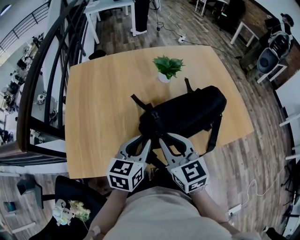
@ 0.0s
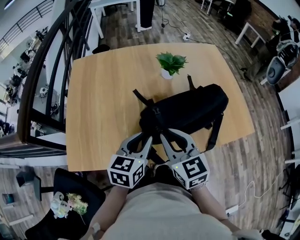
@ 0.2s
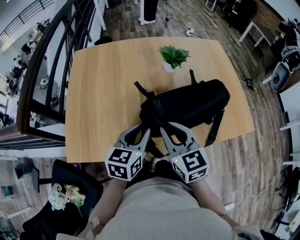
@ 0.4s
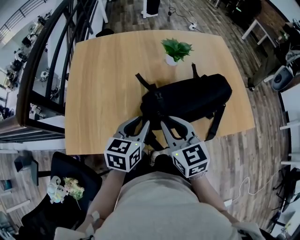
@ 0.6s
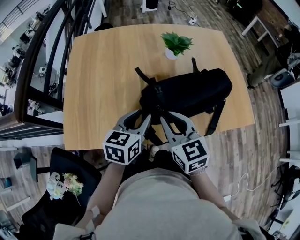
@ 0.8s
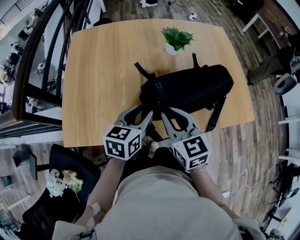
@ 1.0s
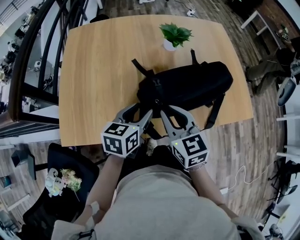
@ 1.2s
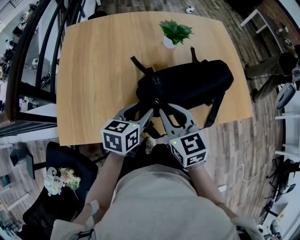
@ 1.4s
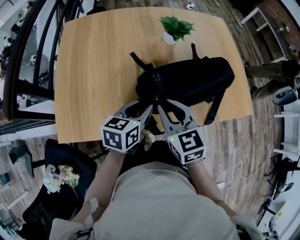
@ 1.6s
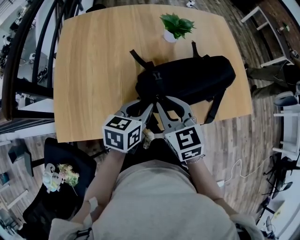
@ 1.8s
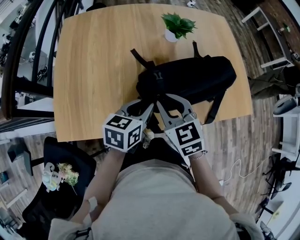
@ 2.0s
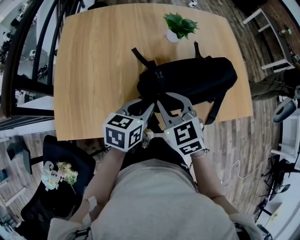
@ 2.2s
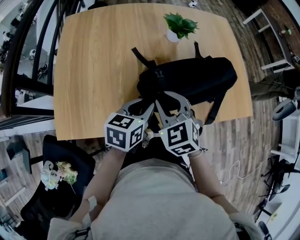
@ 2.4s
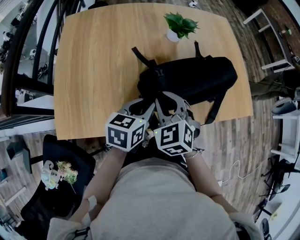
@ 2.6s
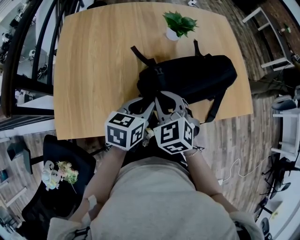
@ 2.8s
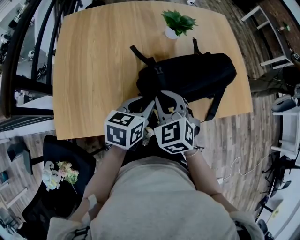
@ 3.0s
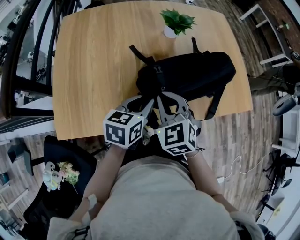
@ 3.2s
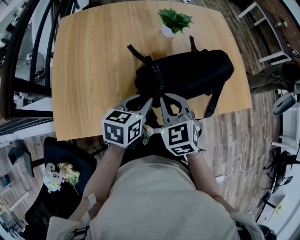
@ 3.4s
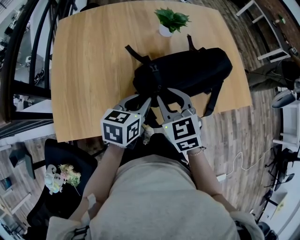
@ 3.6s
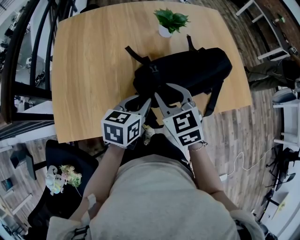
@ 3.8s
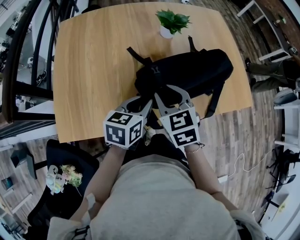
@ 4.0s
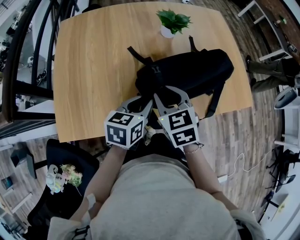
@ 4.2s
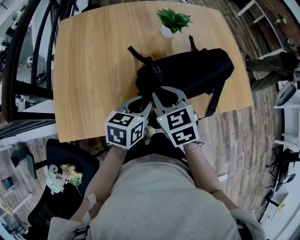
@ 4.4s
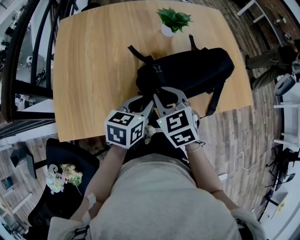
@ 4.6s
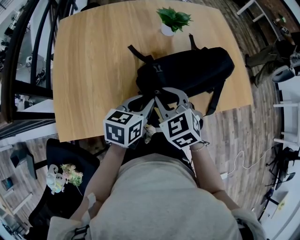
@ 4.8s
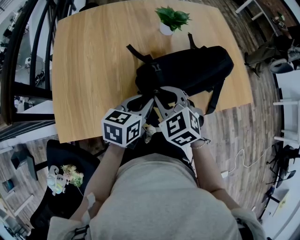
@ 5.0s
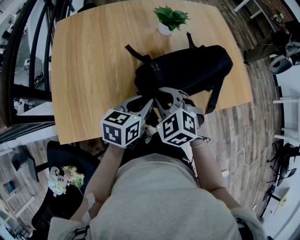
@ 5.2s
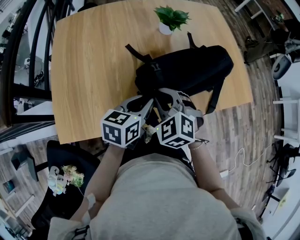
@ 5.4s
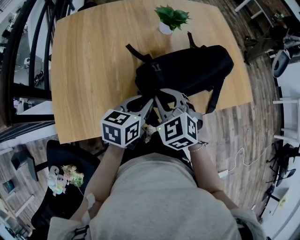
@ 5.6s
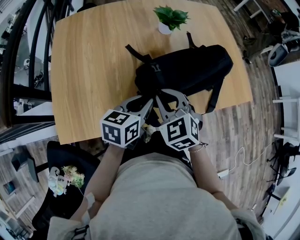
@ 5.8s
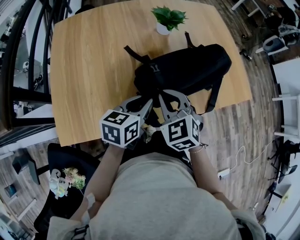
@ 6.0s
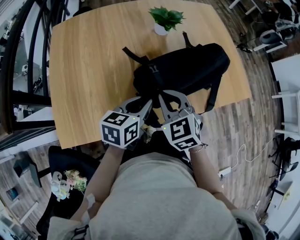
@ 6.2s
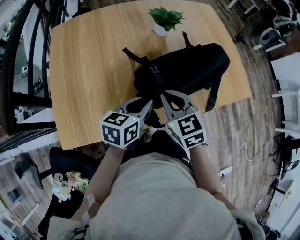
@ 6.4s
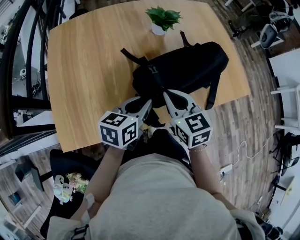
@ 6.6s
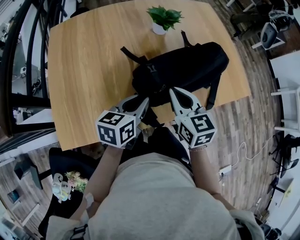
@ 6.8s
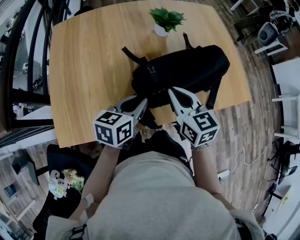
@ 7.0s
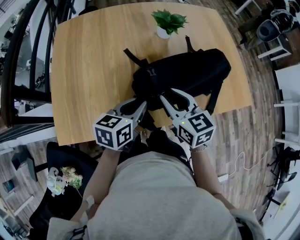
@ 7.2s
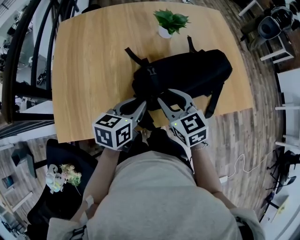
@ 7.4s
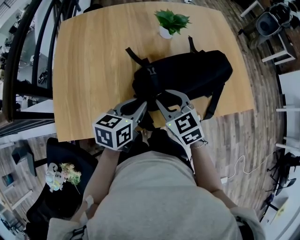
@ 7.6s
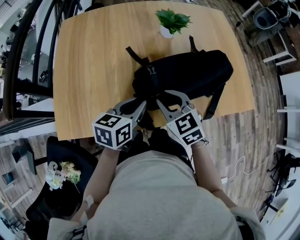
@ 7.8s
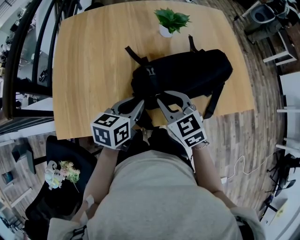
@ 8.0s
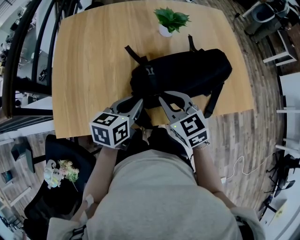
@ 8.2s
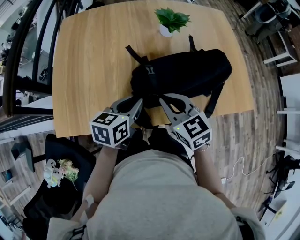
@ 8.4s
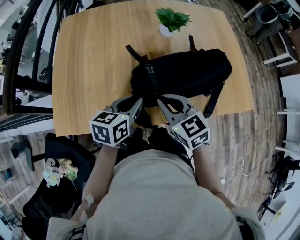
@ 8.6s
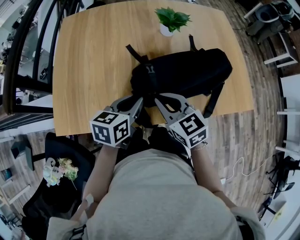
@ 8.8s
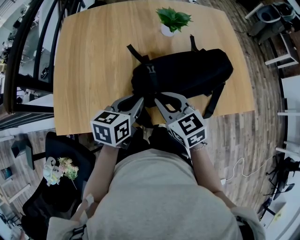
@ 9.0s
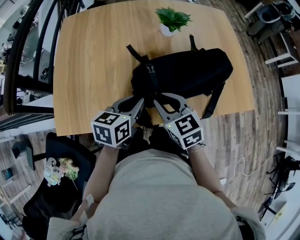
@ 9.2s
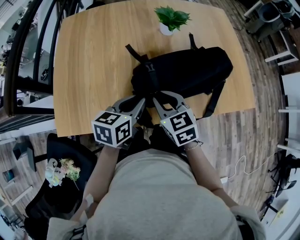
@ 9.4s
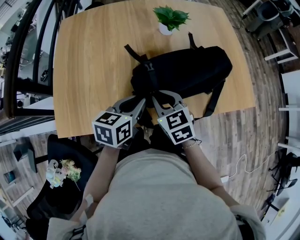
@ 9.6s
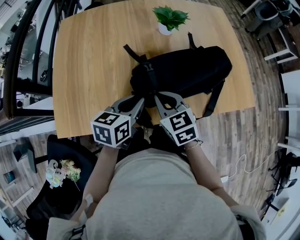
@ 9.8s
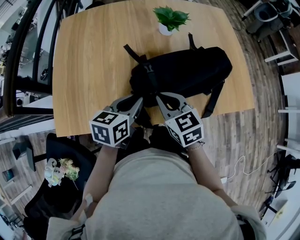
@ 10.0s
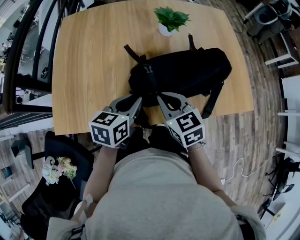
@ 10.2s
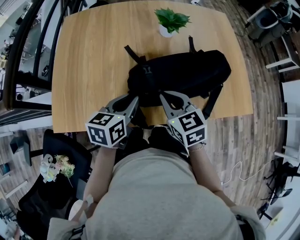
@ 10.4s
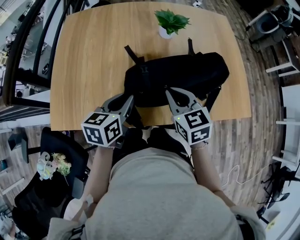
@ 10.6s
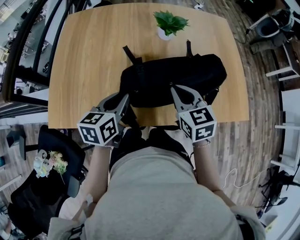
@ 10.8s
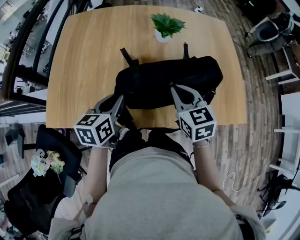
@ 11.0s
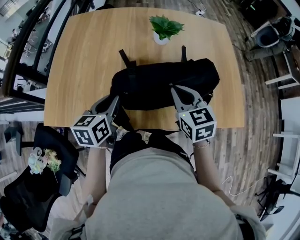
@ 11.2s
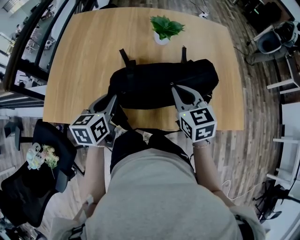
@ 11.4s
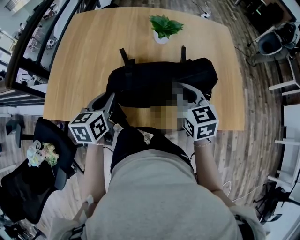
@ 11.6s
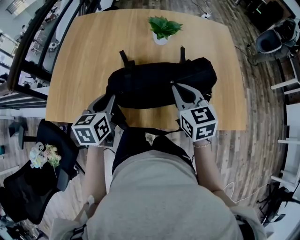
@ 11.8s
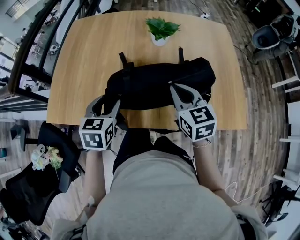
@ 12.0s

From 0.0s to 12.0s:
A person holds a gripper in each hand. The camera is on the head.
From 0.0s to 1.6s: The left gripper moves some 5 cm.
From 1.6s to 3.0s: The right gripper changes its angle by approximately 30 degrees.
From 6.0s to 7.6s: The right gripper opens up.
From 7.6s to 10.4s: The grippers move only a little.
From 10.4s to 12.0s: The left gripper swivels approximately 30 degrees, and opens its fingers. Meanwhile the right gripper shifts approximately 10 cm to the right.

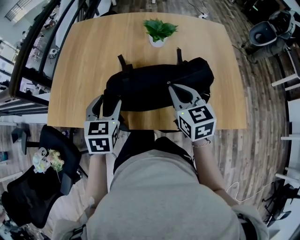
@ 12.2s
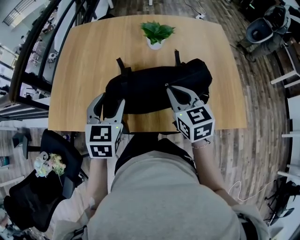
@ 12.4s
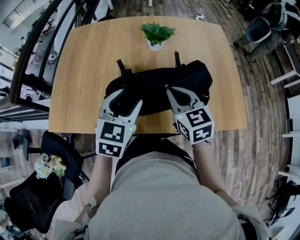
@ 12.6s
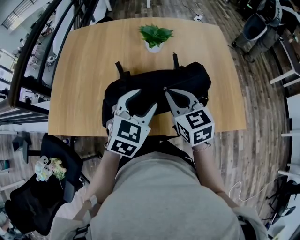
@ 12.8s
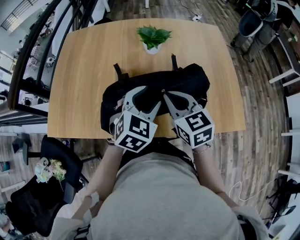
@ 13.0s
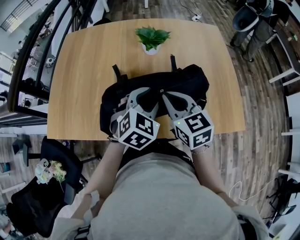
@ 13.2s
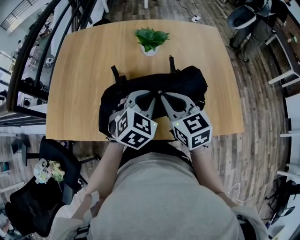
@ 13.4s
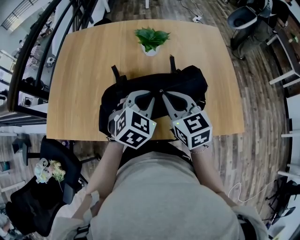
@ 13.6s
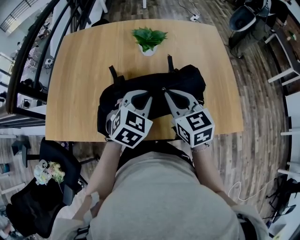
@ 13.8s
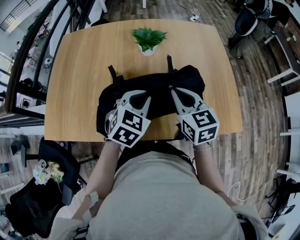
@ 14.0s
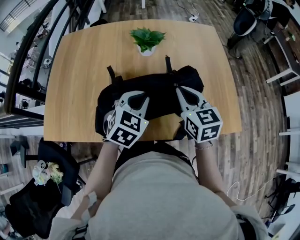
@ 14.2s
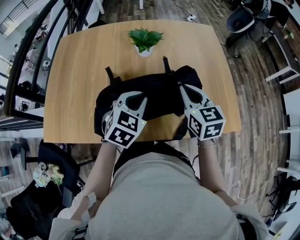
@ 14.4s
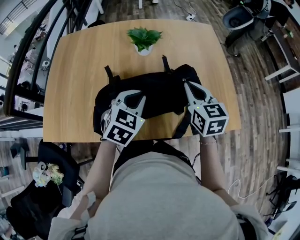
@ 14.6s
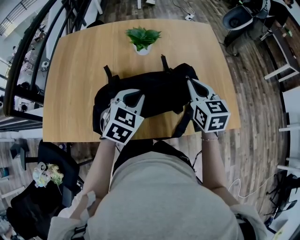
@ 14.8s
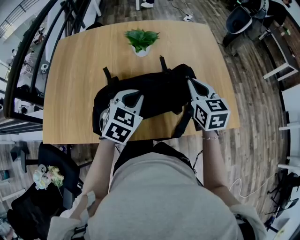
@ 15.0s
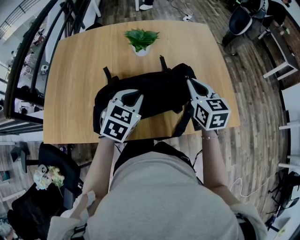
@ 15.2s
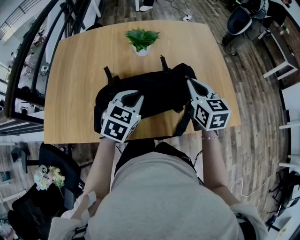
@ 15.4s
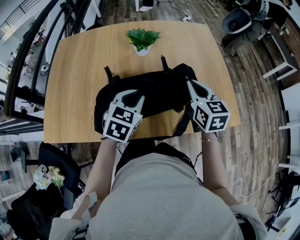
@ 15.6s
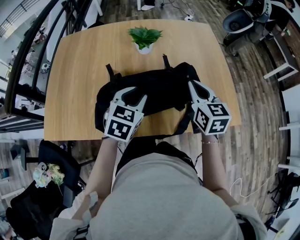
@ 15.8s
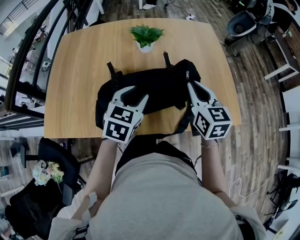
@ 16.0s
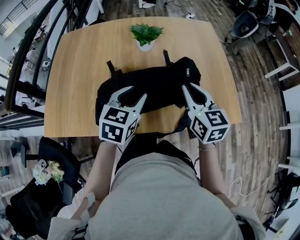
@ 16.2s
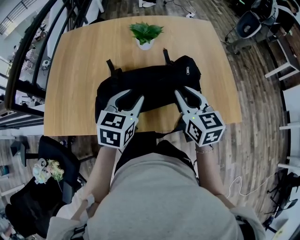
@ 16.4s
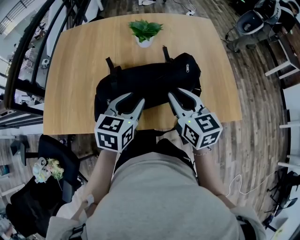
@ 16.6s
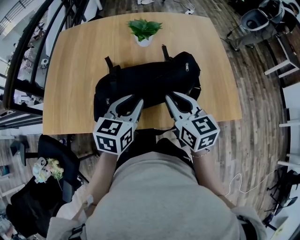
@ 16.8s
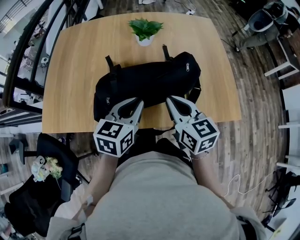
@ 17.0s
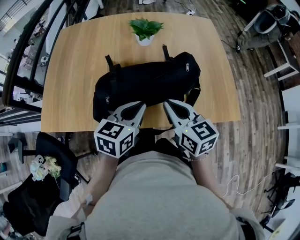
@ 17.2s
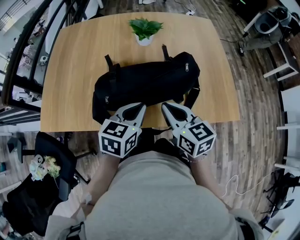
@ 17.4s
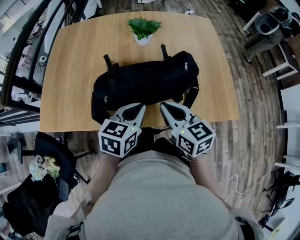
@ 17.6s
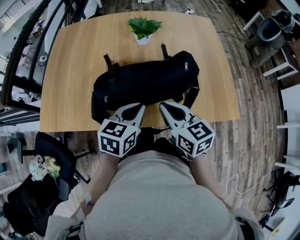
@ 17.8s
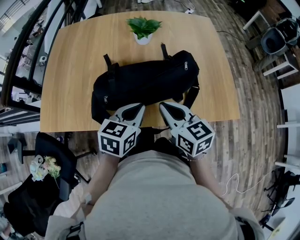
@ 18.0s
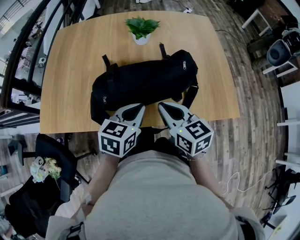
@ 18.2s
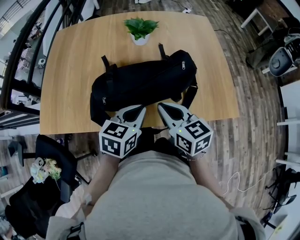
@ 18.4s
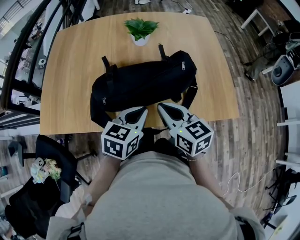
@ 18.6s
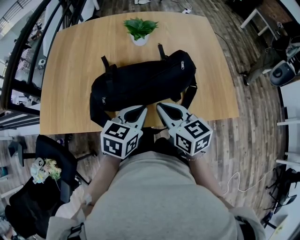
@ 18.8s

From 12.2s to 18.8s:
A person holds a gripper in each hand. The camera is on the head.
From 12.2s to 13.8s: The left gripper is displaced to the right by approximately 15 cm, turns by about 30 degrees, and closes up.
From 13.8s to 15.4s: The right gripper shifts about 10 cm to the right.
From 15.4s to 17.2s: The right gripper shifts approximately 15 cm backward and to the left. Meanwhile the left gripper goes about 10 cm backward, changes its angle by approximately 20 degrees, and opens and closes again.
From 17.2s to 18.8s: The grippers move only a little.

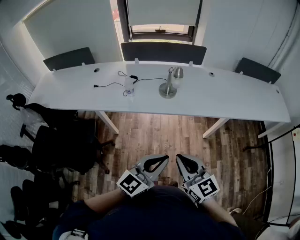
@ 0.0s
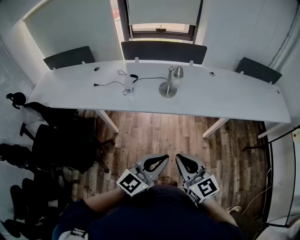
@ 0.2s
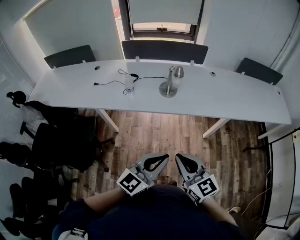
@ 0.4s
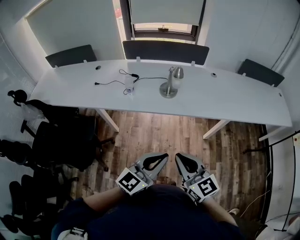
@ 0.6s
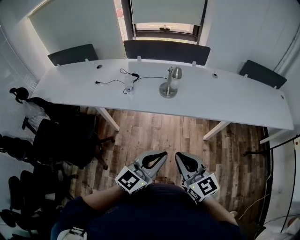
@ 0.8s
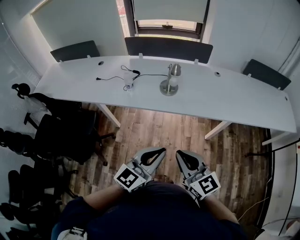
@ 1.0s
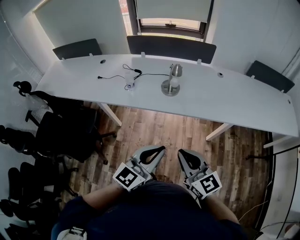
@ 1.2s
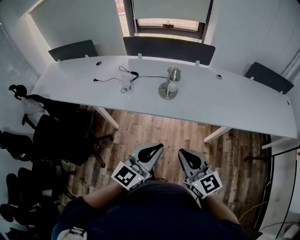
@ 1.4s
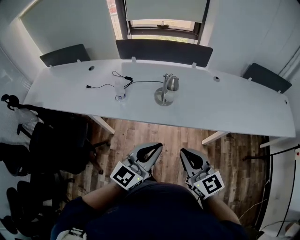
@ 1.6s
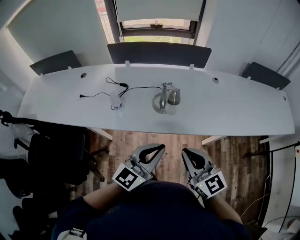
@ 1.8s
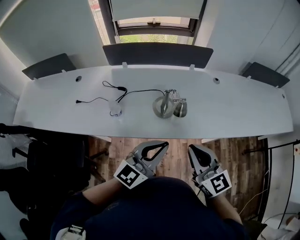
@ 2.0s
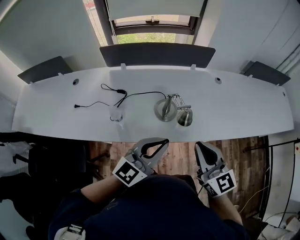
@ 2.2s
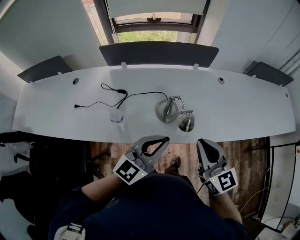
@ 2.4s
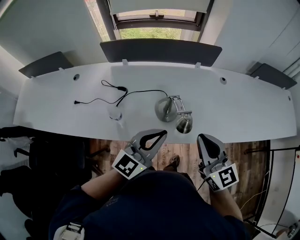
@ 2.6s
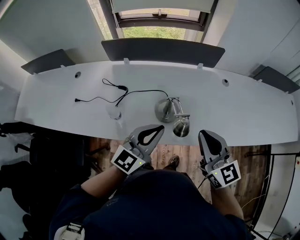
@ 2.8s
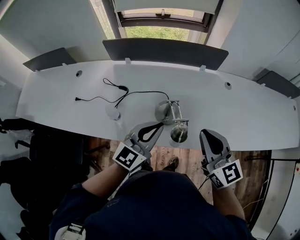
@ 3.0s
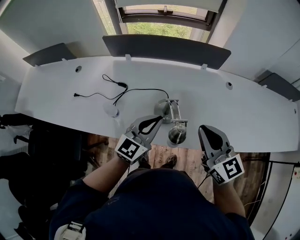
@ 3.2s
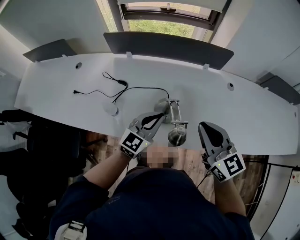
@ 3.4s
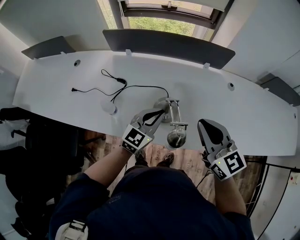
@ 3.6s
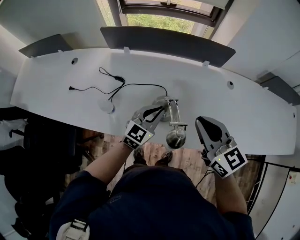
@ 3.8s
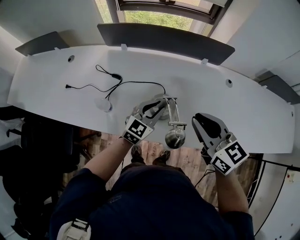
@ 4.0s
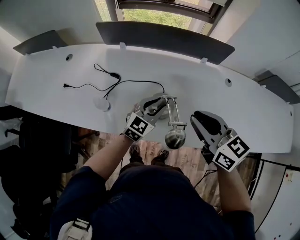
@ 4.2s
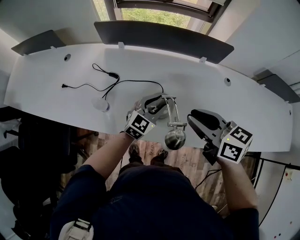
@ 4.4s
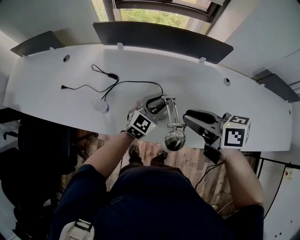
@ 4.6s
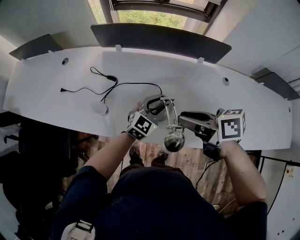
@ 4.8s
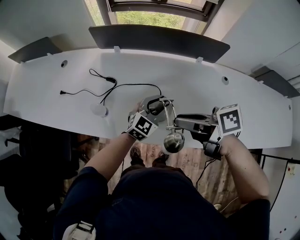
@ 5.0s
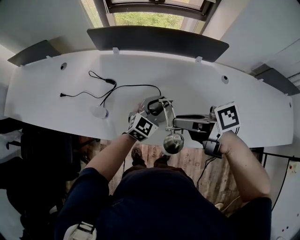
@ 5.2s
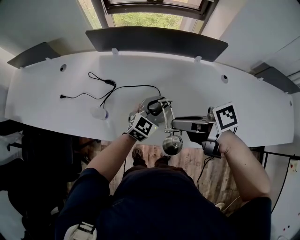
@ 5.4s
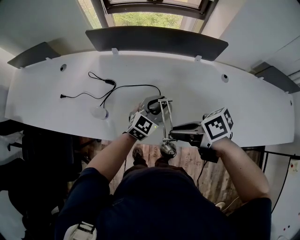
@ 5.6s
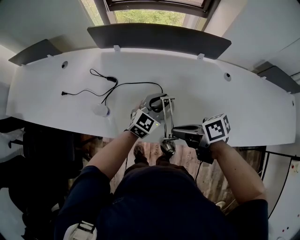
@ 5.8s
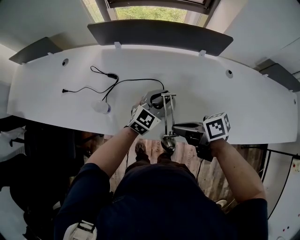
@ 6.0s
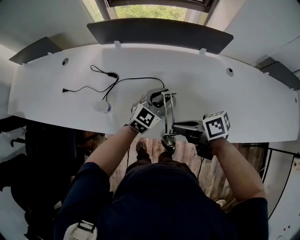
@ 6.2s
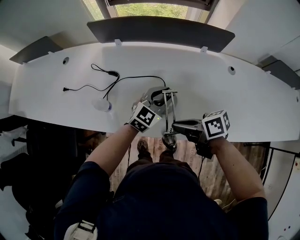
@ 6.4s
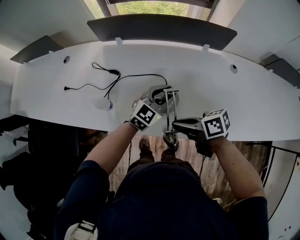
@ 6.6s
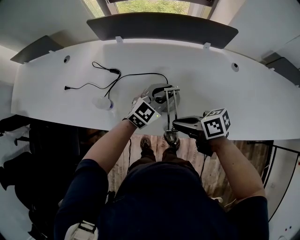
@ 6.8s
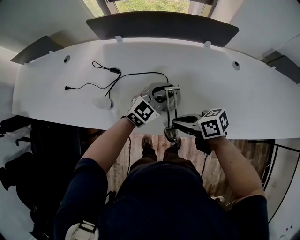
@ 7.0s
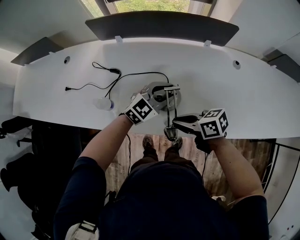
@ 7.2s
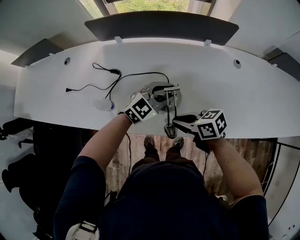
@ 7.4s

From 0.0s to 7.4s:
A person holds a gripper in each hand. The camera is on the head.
From 0.0s to 1.4s: Both grippers travel together forward and to the right, about 15 cm.
From 1.4s to 3.0s: Both grippers move forward, roughly 40 cm.
From 3.0s to 4.4s: The right gripper shifts about 10 cm forward, swivels roughly 40 degrees, and opens its fingers; the left gripper is displaced downward and forward by some 20 cm, and opens its fingers.
From 4.4s to 6.0s: The right gripper shifts roughly 10 cm downward, and swivels about 40 degrees.
From 6.0s to 7.4s: The right gripper is displaced downward by approximately 5 cm.
